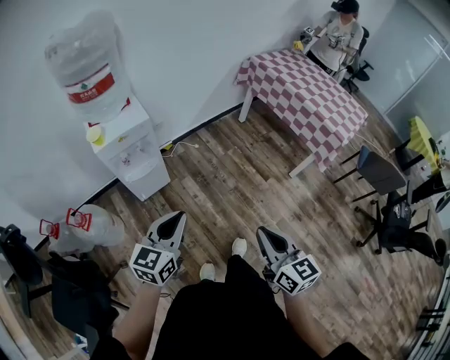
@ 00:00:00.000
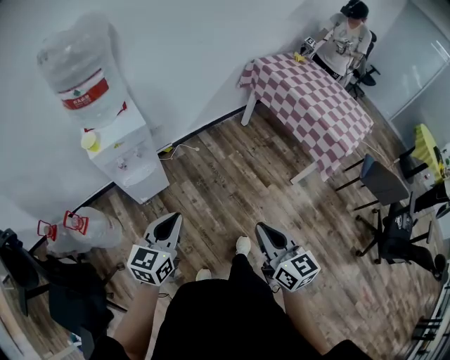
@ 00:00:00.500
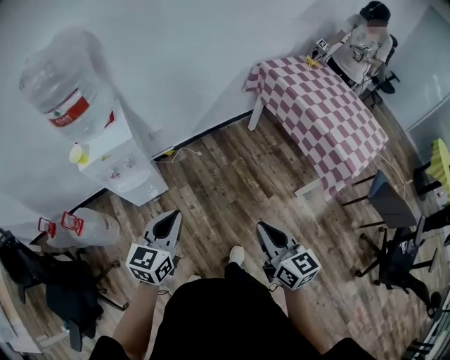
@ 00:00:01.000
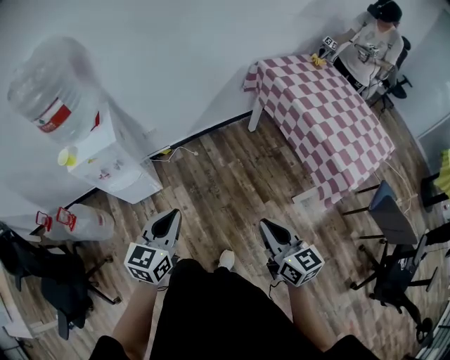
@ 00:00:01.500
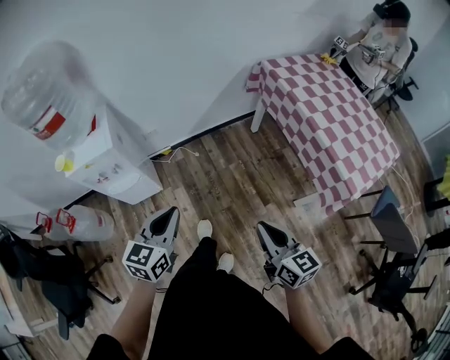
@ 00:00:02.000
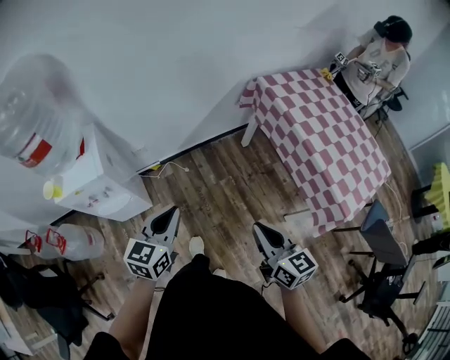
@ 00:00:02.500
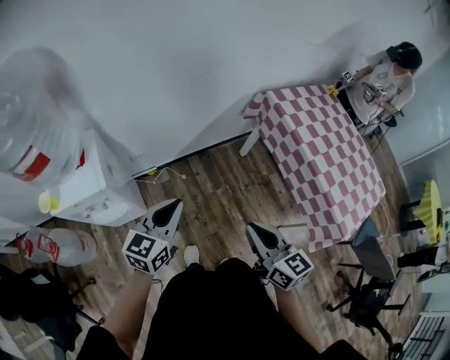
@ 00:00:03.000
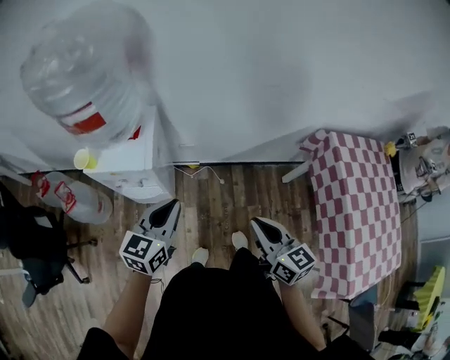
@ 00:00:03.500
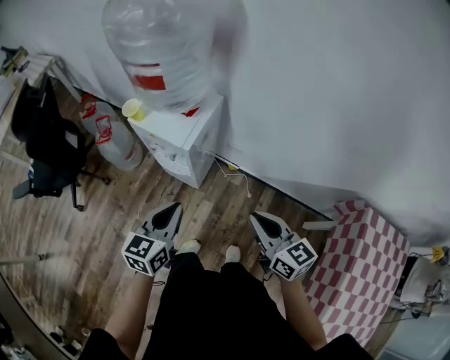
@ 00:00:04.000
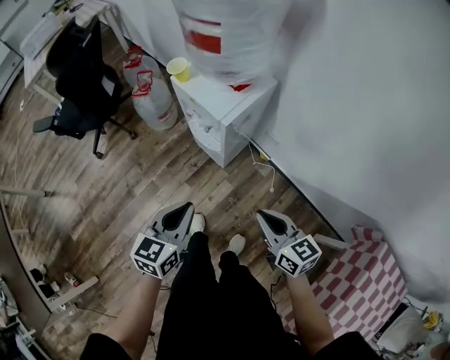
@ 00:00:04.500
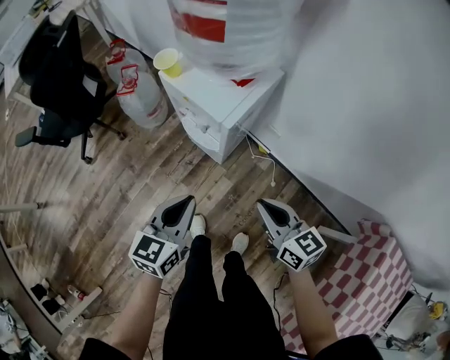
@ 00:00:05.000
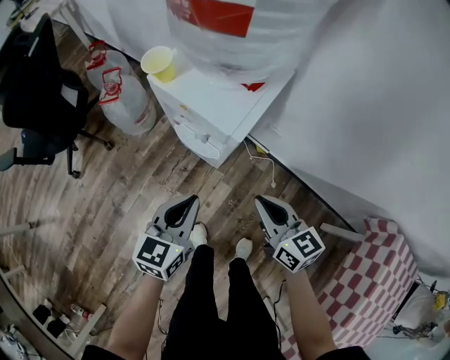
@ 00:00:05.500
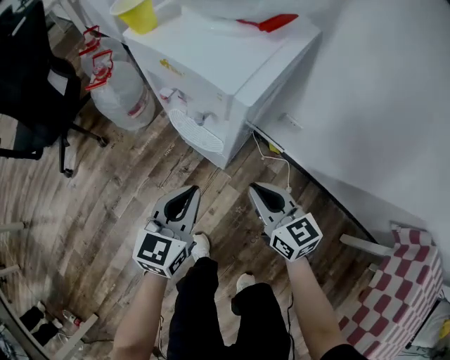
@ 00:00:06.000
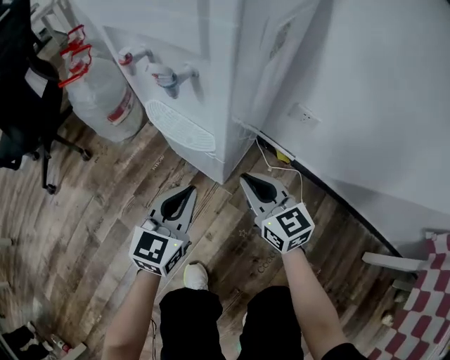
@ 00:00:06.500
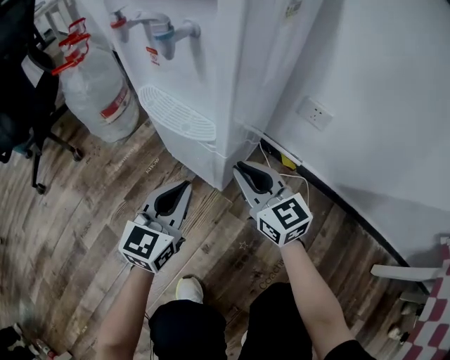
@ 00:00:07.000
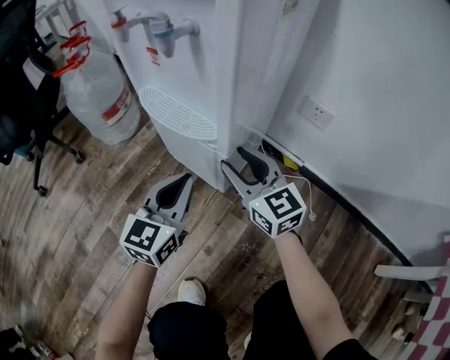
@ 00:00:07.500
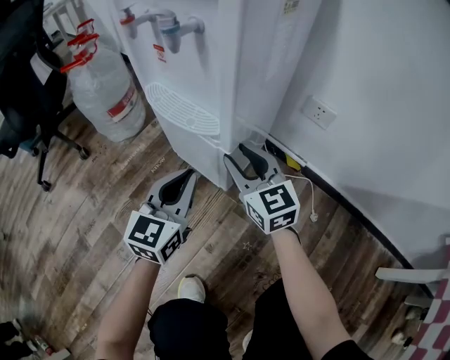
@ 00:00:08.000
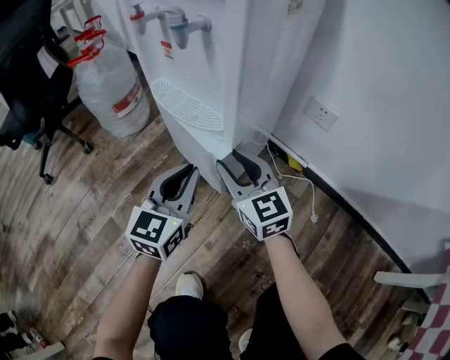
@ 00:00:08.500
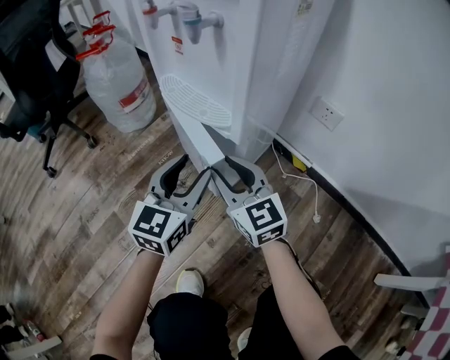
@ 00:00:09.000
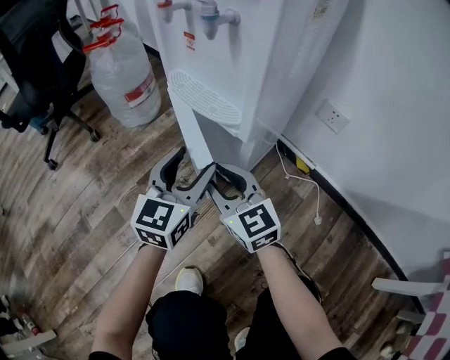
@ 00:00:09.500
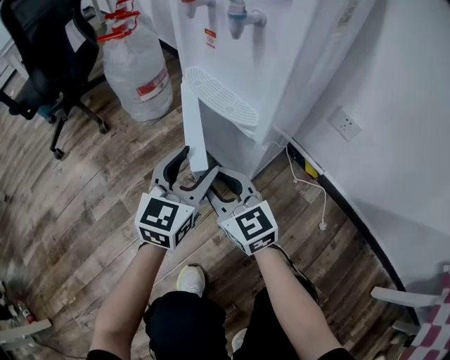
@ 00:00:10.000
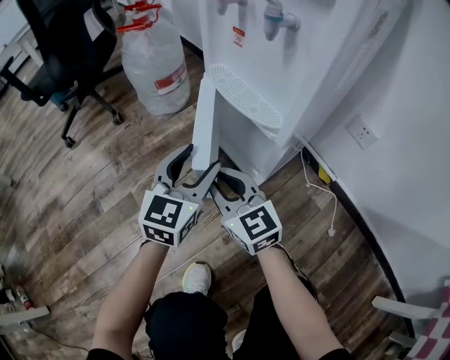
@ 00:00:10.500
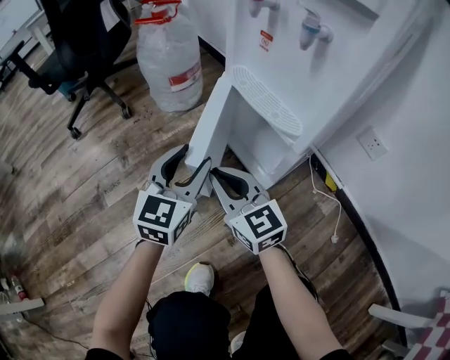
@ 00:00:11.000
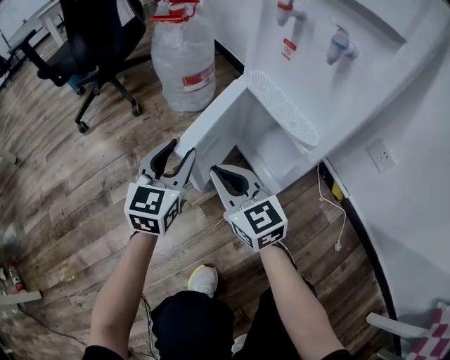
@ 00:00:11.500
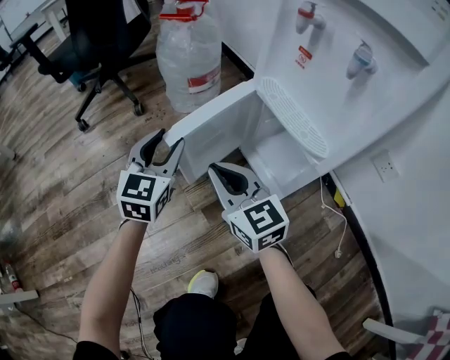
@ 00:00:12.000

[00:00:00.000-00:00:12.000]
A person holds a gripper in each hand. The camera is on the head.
00:00:00.000 to 00:00:02.000: The grippers both shift forward and to the right by approximately 35 cm.
00:00:02.000 to 00:00:04.000: The right gripper changes place by about 40 cm, and changes its angle by roughly 60 degrees; the left gripper shifts by about 20 cm, and rotates about 50 degrees.
00:00:04.000 to 00:00:06.000: The right gripper travels downward and forward by some 35 cm. Meanwhile the left gripper travels downward by about 30 cm.
00:00:06.000 to 00:00:08.000: The right gripper heads downward and forward, covering roughly 25 cm, and opens its fingers. Meanwhile the left gripper heads downward, covering roughly 25 cm.
00:00:08.000 to 00:00:10.000: The left gripper opens, while the right gripper shifts some 15 cm to the left and backward.
00:00:10.000 to 00:00:12.000: The right gripper shifts about 15 cm to the left and forward, and closes its fingers; the left gripper moves to the left and forward, some 25 cm, rotates about 20 degrees, and closes up.

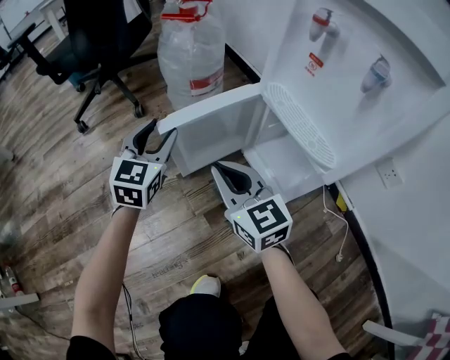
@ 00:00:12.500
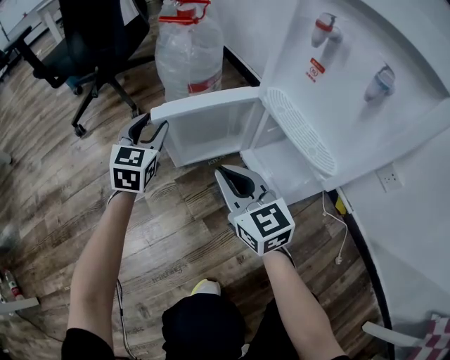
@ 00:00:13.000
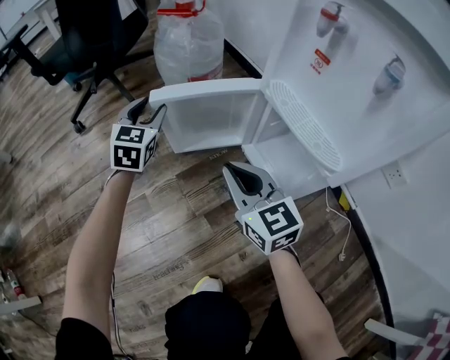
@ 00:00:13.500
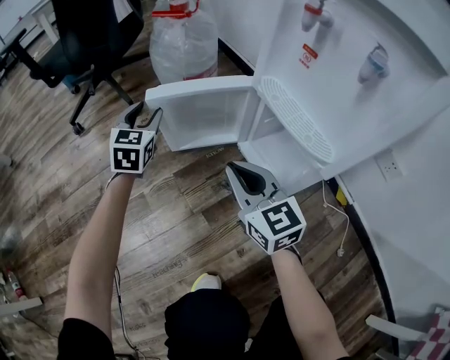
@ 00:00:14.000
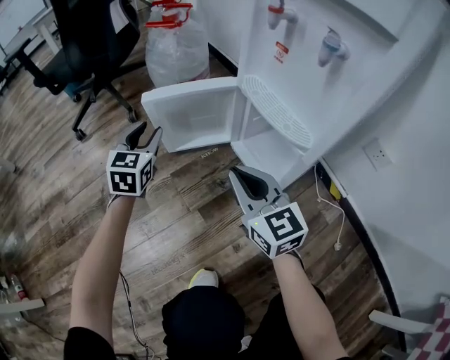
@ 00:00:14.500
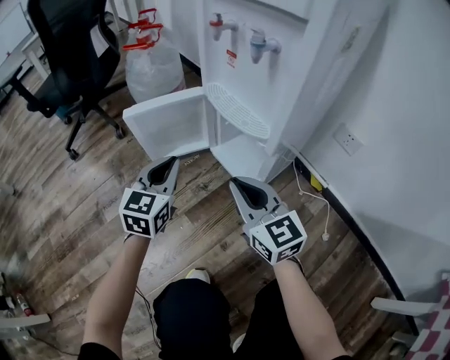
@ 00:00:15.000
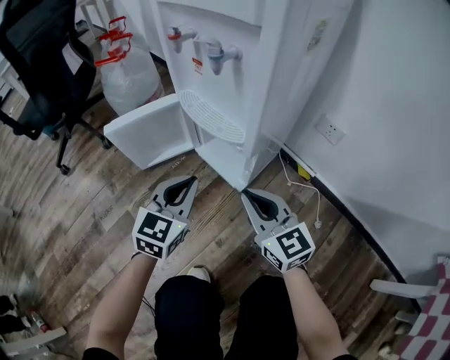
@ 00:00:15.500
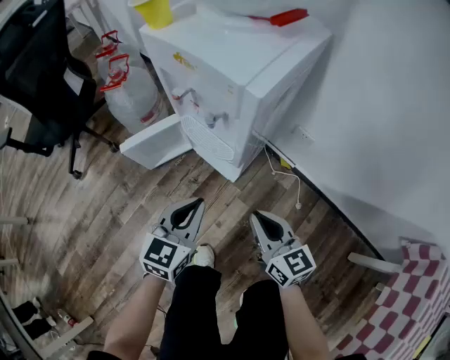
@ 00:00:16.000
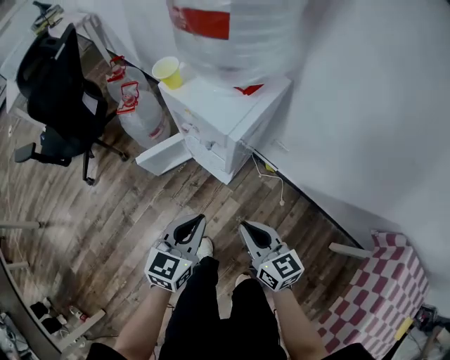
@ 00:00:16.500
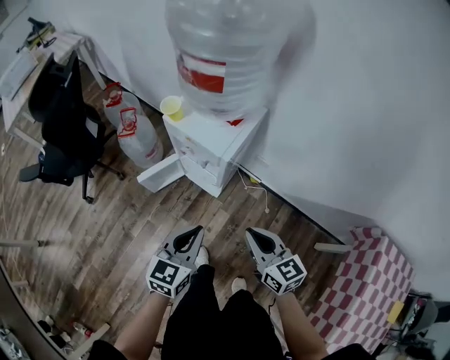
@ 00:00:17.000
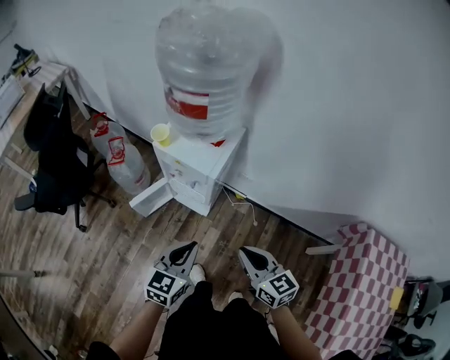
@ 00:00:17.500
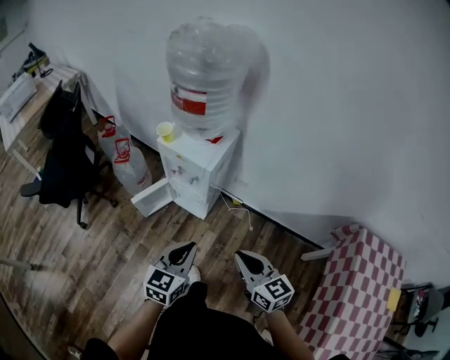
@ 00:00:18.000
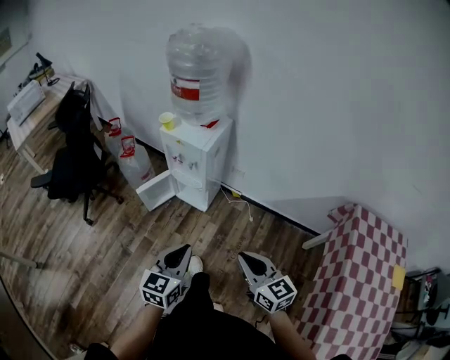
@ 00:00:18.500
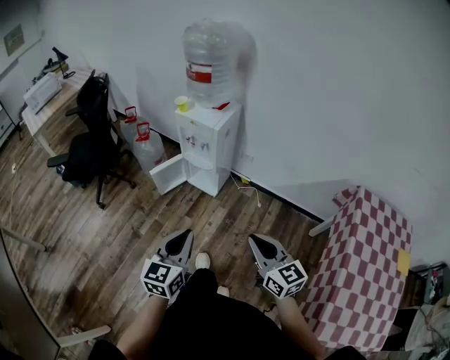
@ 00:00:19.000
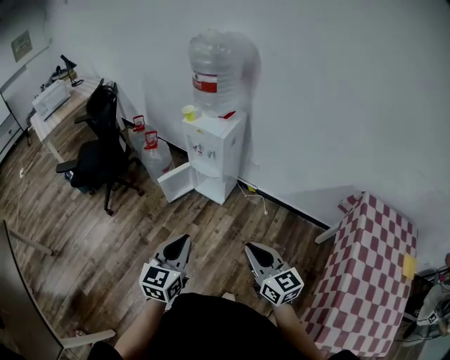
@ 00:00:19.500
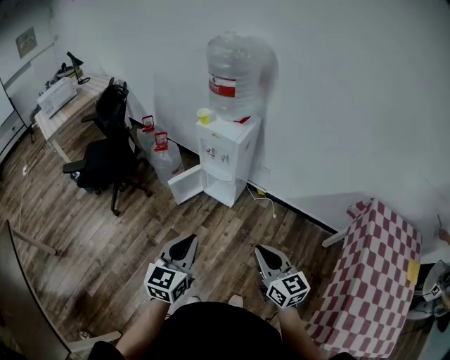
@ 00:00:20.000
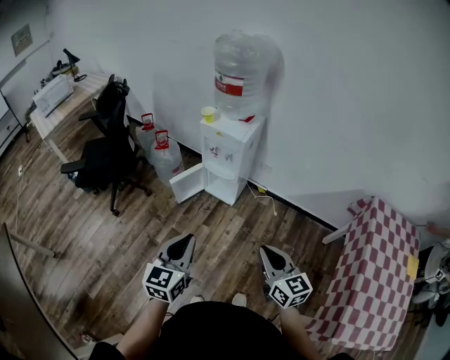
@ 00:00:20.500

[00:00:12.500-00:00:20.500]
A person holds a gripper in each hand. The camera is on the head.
00:00:12.500 to 00:00:14.500: The left gripper reaches about 10 cm forward, then returns. The right gripper travels to the right and backward by approximately 10 cm.
00:00:14.500 to 00:00:16.500: The grippers both shift upward by roughly 40 cm. The right gripper turns by roughly 30 degrees. Meanwhile the left gripper changes its angle by approximately 40 degrees, and closes up.
00:00:16.500 to 00:00:18.500: Both grippers move backward and upward, roughly 35 cm.
00:00:18.500 to 00:00:20.500: The grippers both shift to the left and backward by roughly 15 cm.

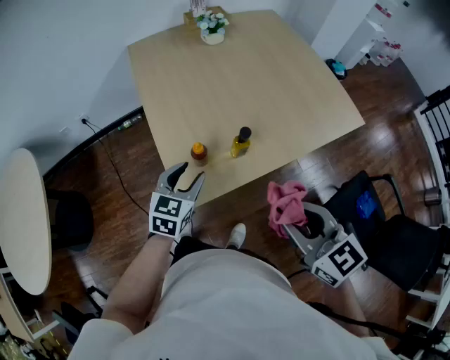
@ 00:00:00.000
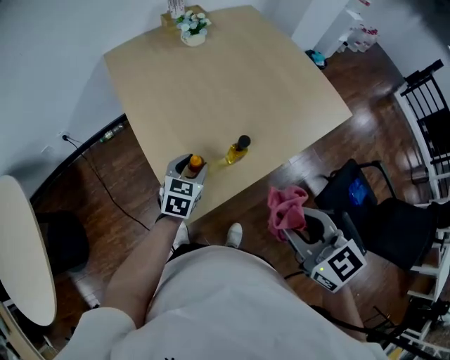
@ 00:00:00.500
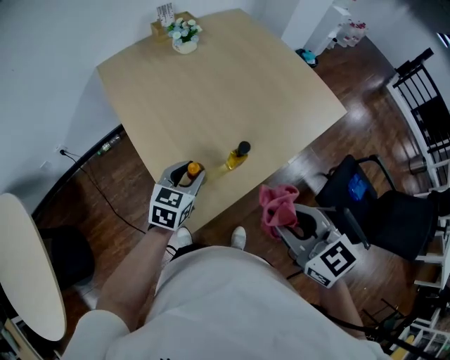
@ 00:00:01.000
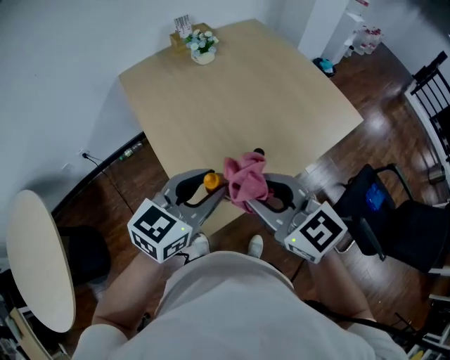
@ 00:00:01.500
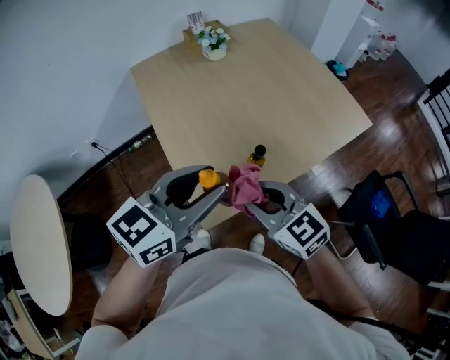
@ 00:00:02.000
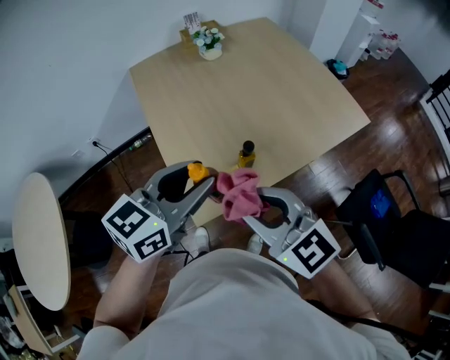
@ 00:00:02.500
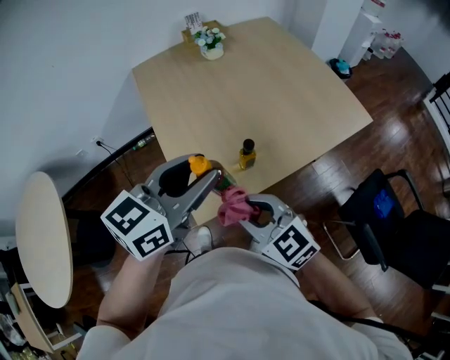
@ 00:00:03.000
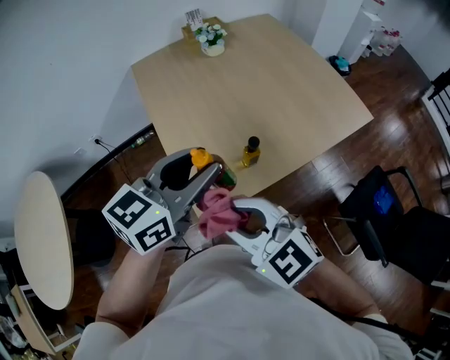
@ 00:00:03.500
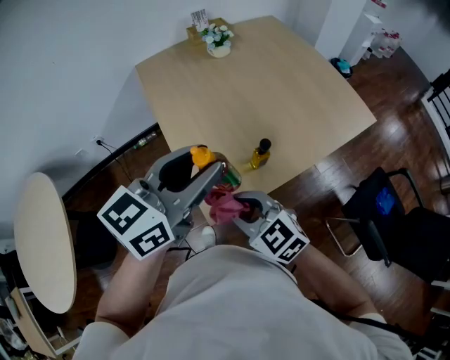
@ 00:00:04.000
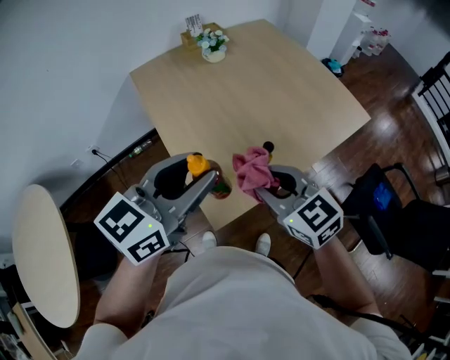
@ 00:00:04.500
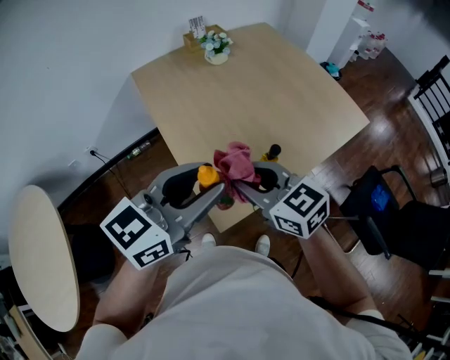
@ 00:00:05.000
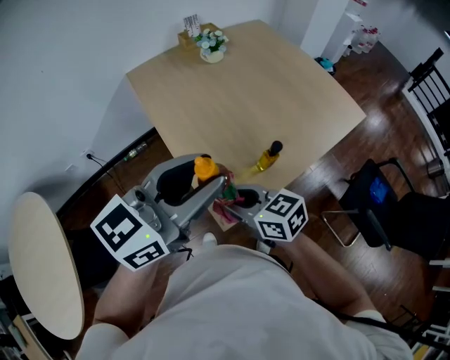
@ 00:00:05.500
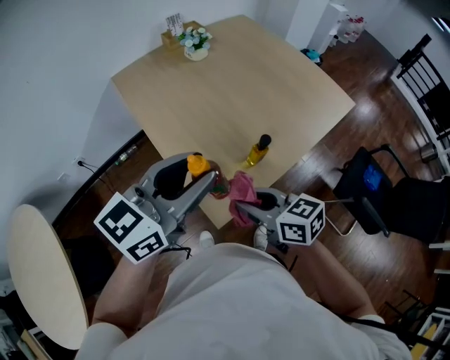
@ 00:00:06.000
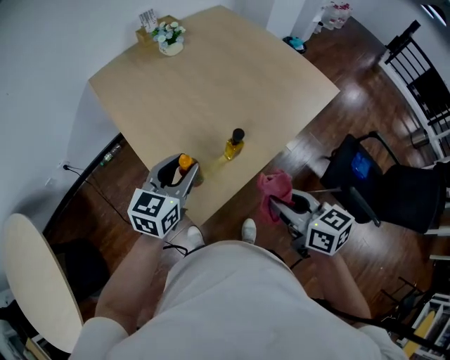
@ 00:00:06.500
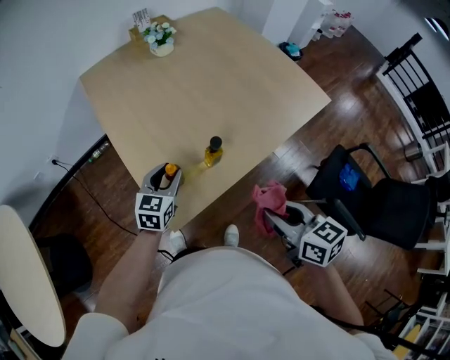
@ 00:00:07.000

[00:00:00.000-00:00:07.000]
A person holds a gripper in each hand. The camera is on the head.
00:00:00.000 to 00:00:02.000: The left gripper goes approximately 20 cm upward, and swivels some 30 degrees. The right gripper goes some 15 cm to the left and forward.
00:00:02.000 to 00:00:03.500: The right gripper goes up and down, about 10 cm each way, reversing 2 times.
00:00:03.500 to 00:00:05.000: The right gripper moves forward, approximately 10 cm, and changes its angle by some 20 degrees. Meanwhile the left gripper heads to the left, covering about 10 cm.
00:00:05.000 to 00:00:07.000: The right gripper heads to the right and backward, covering roughly 25 cm, and swivels roughly 30 degrees, while the left gripper travels downward by some 25 cm, and swivels approximately 30 degrees.
